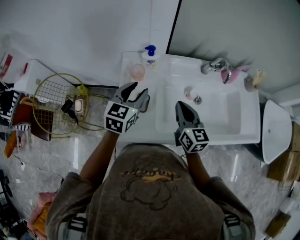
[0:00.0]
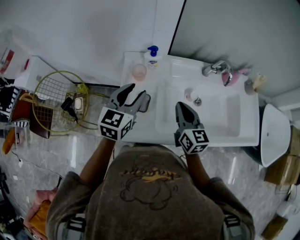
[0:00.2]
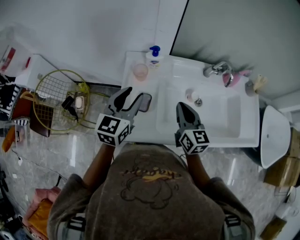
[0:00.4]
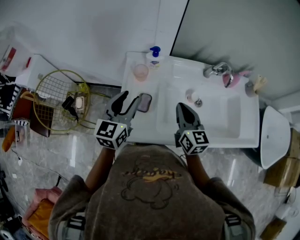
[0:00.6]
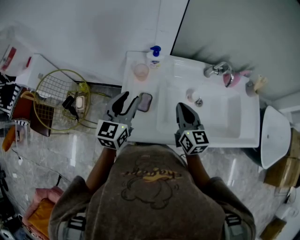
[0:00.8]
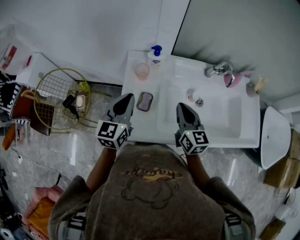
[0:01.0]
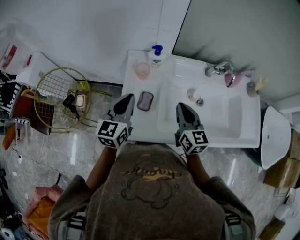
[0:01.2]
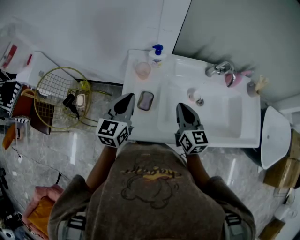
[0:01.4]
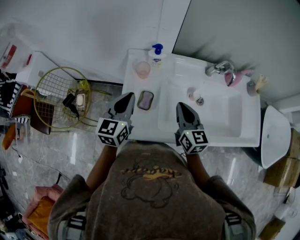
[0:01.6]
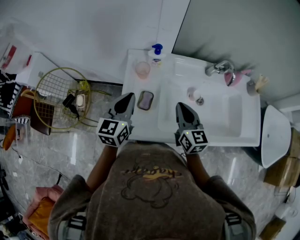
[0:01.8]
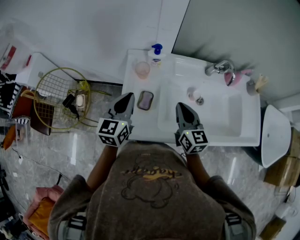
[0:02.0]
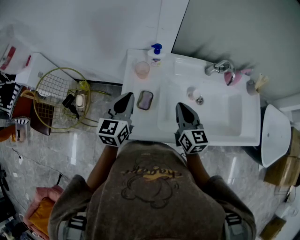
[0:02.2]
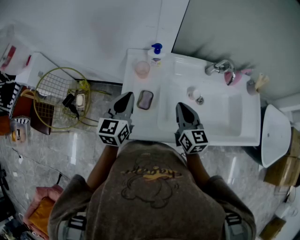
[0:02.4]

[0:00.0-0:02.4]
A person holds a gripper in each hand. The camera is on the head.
0:00.0 to 0:01.2: The left gripper is displaced to the left and backward by approximately 10 cm, and closes up.
0:01.2 to 0:02.4: Both grippers stay put.

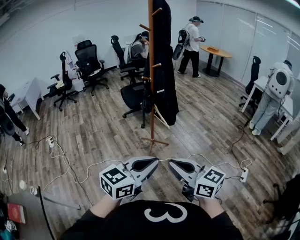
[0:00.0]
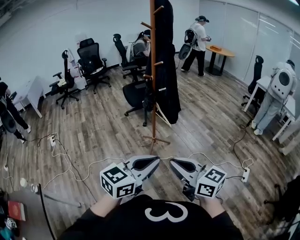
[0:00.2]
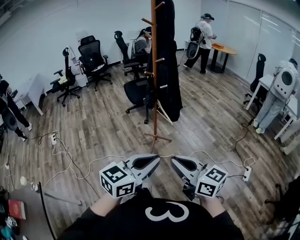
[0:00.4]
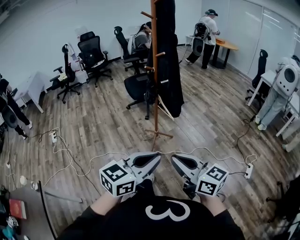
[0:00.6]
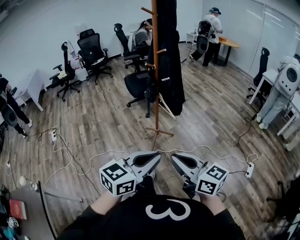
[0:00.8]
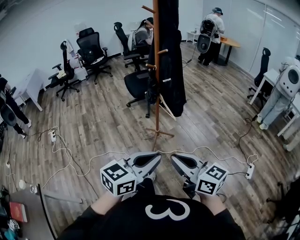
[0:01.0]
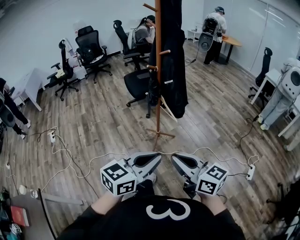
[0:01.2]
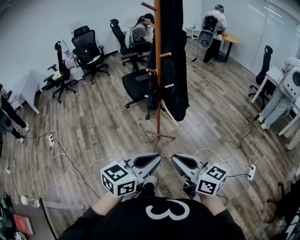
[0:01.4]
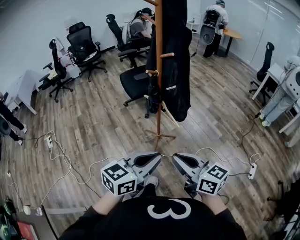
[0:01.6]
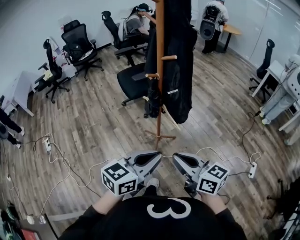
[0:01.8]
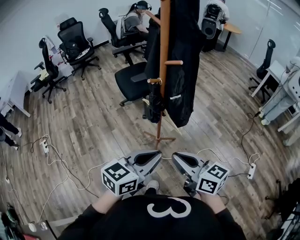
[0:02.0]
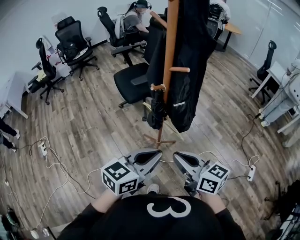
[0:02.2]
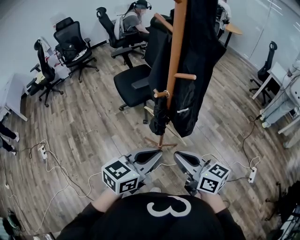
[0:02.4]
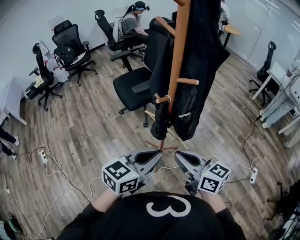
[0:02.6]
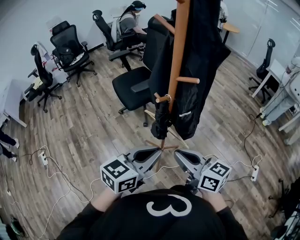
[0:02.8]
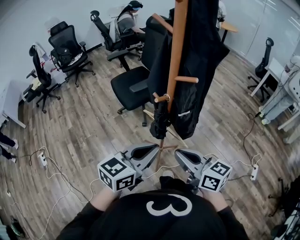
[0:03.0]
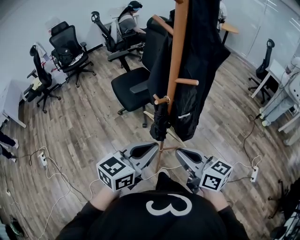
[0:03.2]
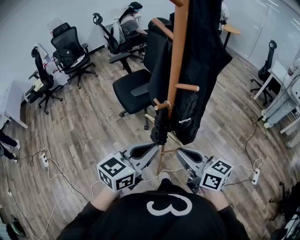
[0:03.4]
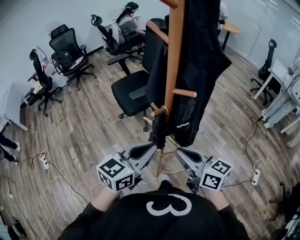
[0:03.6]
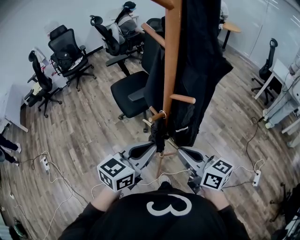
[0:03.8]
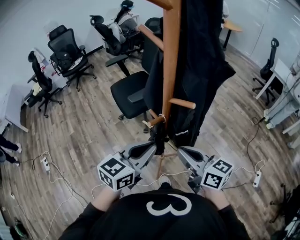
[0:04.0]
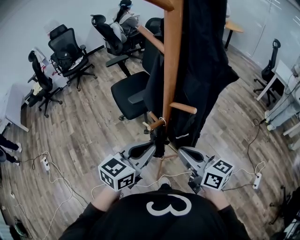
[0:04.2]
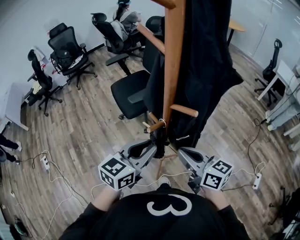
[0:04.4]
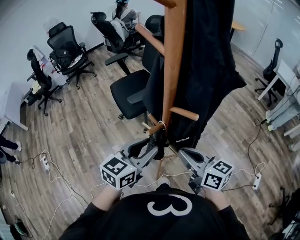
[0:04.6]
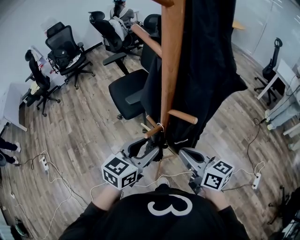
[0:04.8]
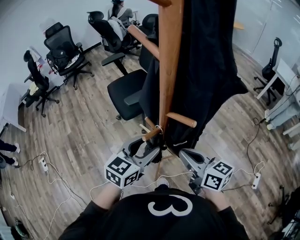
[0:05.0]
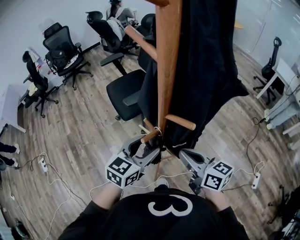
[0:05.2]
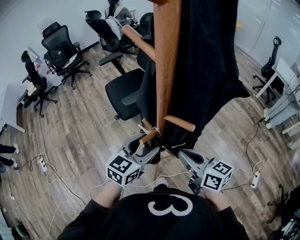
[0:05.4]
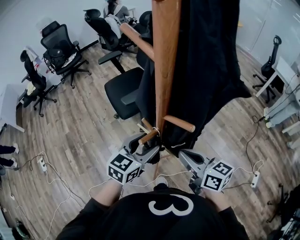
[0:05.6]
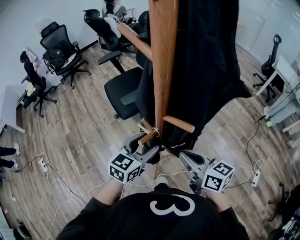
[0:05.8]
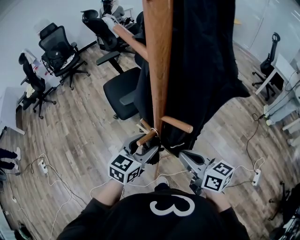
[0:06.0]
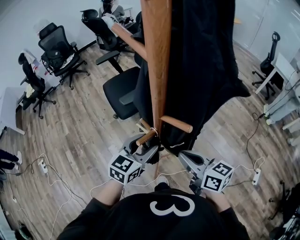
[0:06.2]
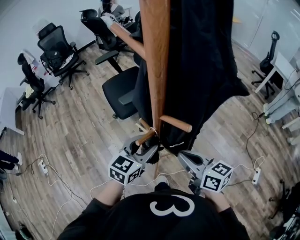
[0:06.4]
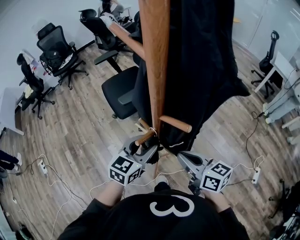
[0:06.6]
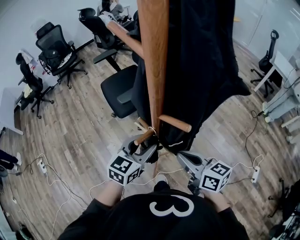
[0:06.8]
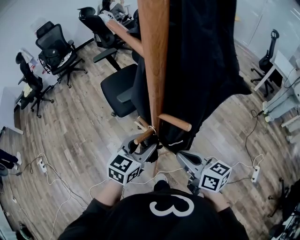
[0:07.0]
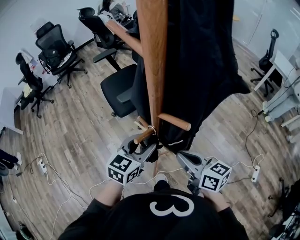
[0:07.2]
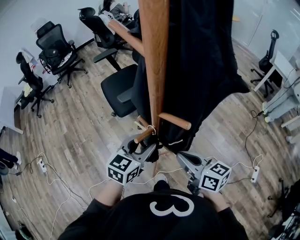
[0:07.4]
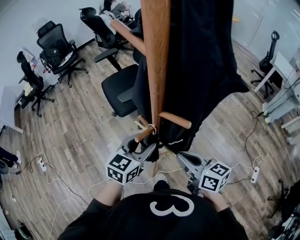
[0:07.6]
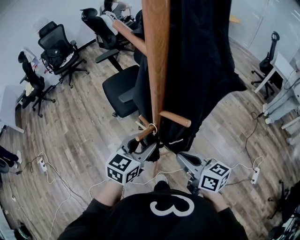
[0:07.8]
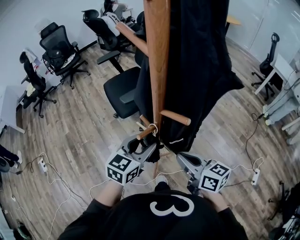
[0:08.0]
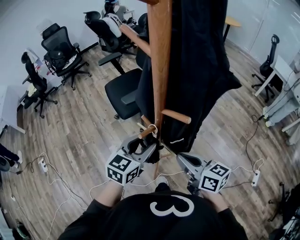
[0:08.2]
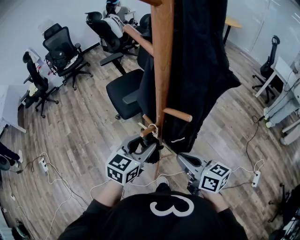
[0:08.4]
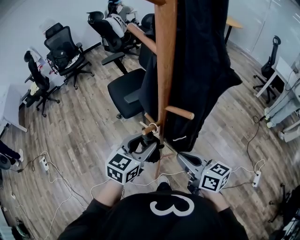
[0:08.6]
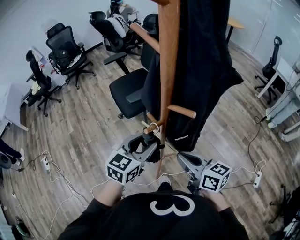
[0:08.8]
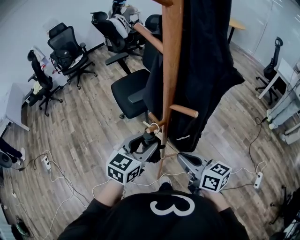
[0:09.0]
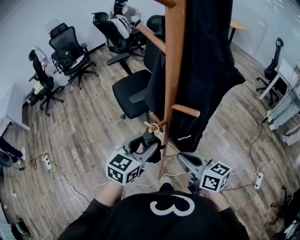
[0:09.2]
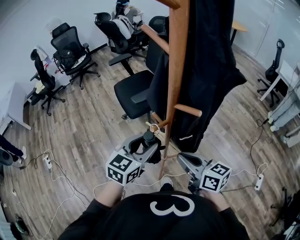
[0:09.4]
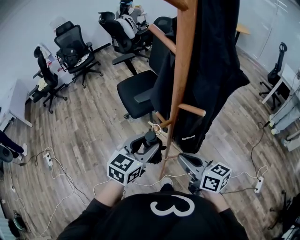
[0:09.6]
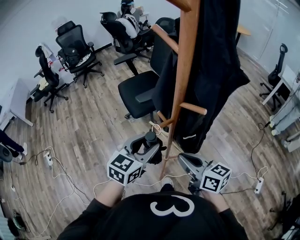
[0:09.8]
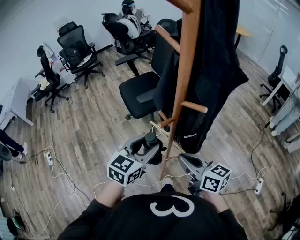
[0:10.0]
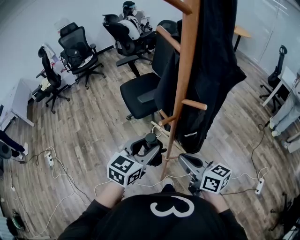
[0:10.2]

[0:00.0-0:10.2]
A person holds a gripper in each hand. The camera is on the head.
0:00.0 to 0:01.4: The grippers both shift forward by some 15 cm.
0:01.4 to 0:03.0: Both grippers move forward, some 30 cm.
0:03.0 to 0:04.4: The grippers both shift forward by some 15 cm.
0:04.4 to 0:05.8: The right gripper shifts by some 5 cm. The left gripper is displaced downward and forward by approximately 10 cm, and opens up.
0:05.8 to 0:07.2: There are only small adjustments of the grippers.
0:07.2 to 0:08.8: The left gripper changes place by approximately 5 cm.
0:08.8 to 0:10.2: The right gripper moves some 5 cm. Meanwhile the left gripper moves about 5 cm.

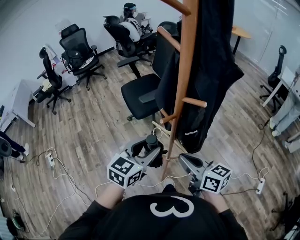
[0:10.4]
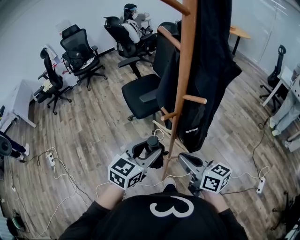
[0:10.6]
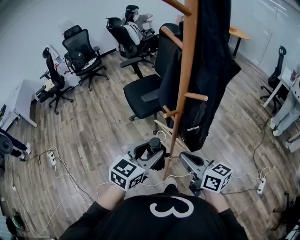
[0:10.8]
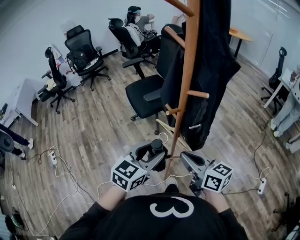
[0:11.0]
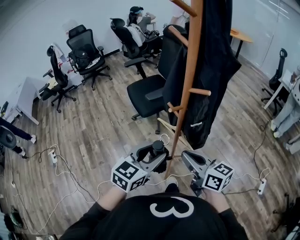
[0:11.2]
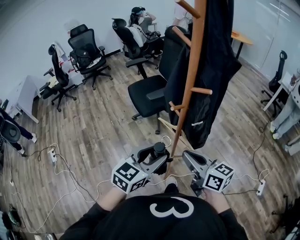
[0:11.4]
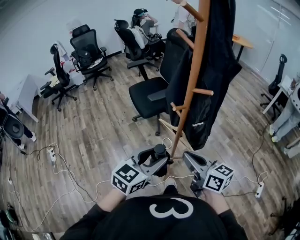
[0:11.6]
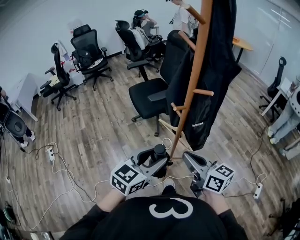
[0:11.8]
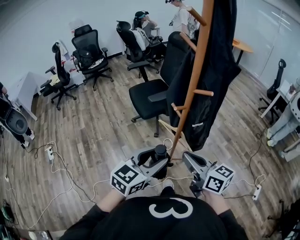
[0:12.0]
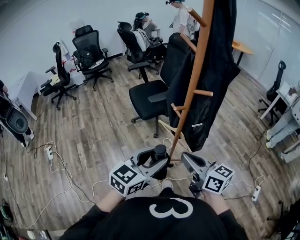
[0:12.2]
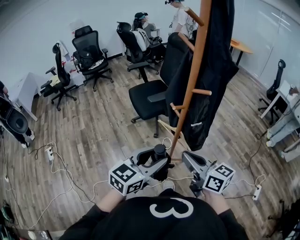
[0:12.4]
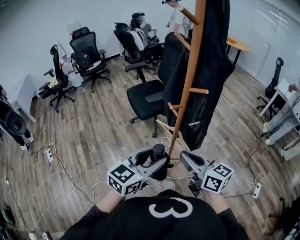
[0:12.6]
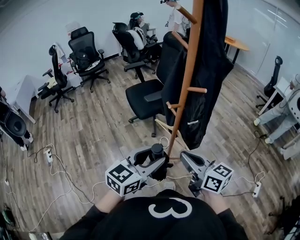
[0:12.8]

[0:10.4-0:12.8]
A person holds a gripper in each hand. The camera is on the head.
0:10.4 to 0:11.6: The right gripper shifts roughly 5 cm backward; the left gripper moves backward, approximately 10 cm.
0:11.6 to 0:12.8: The grippers make only small movements.

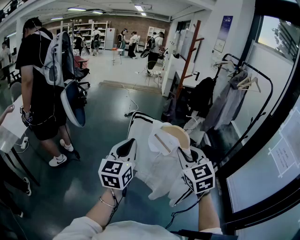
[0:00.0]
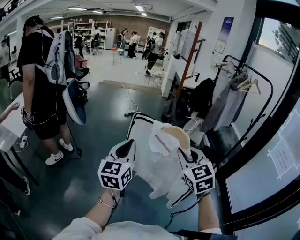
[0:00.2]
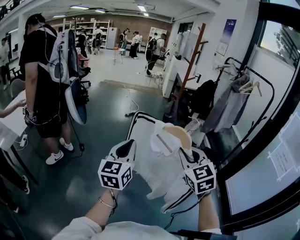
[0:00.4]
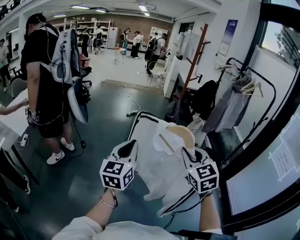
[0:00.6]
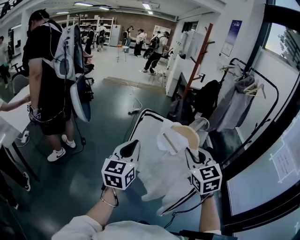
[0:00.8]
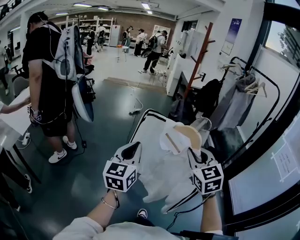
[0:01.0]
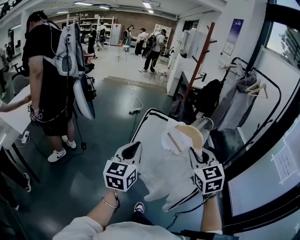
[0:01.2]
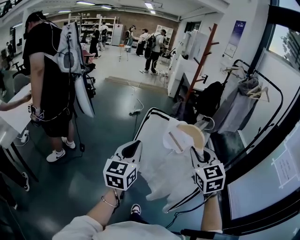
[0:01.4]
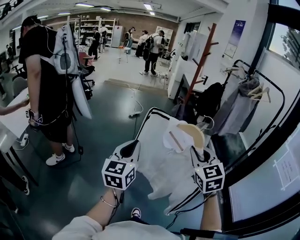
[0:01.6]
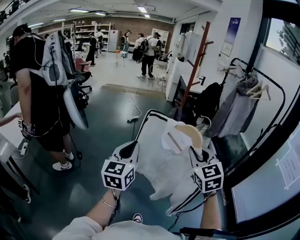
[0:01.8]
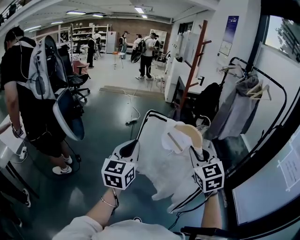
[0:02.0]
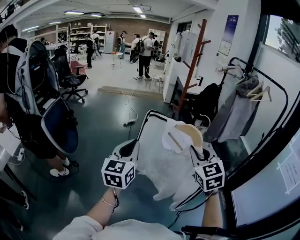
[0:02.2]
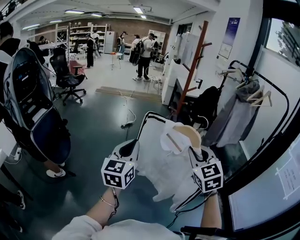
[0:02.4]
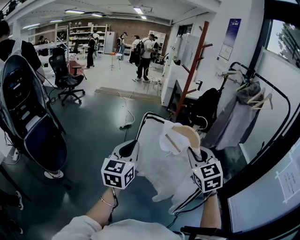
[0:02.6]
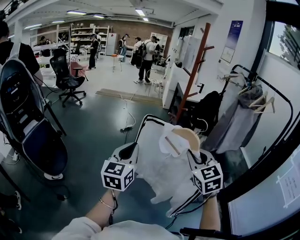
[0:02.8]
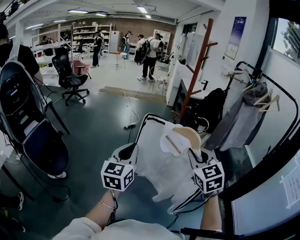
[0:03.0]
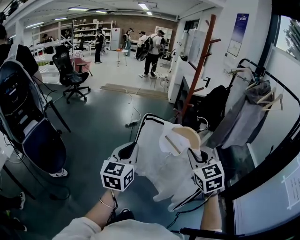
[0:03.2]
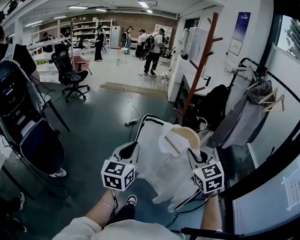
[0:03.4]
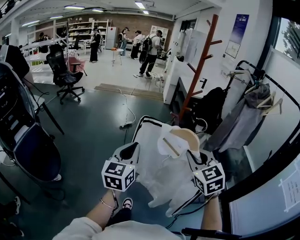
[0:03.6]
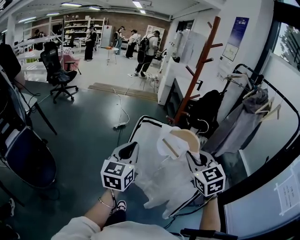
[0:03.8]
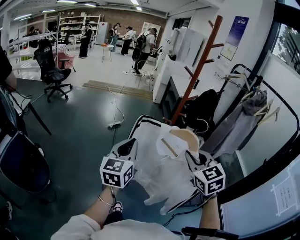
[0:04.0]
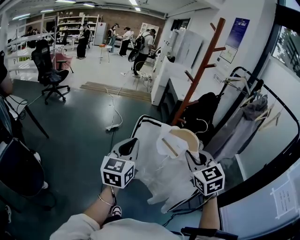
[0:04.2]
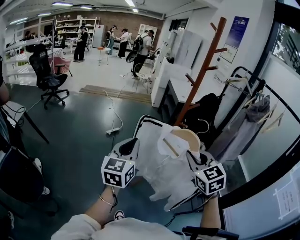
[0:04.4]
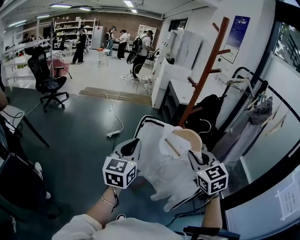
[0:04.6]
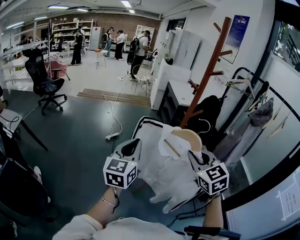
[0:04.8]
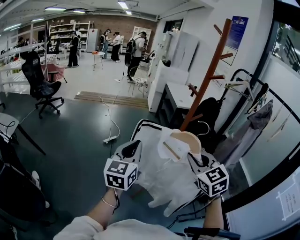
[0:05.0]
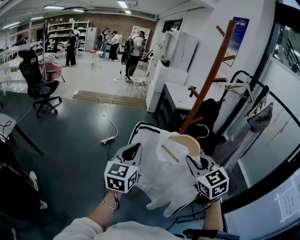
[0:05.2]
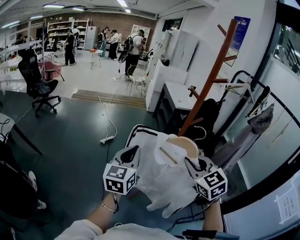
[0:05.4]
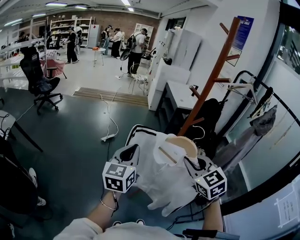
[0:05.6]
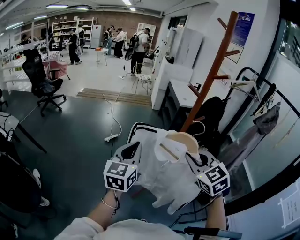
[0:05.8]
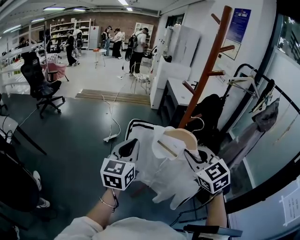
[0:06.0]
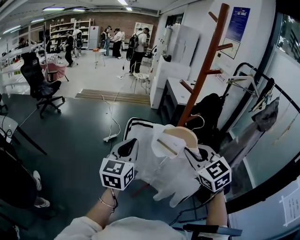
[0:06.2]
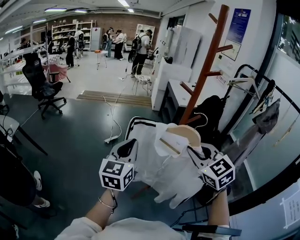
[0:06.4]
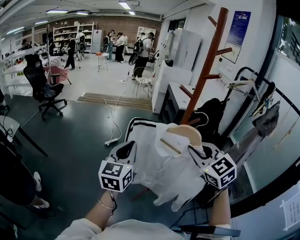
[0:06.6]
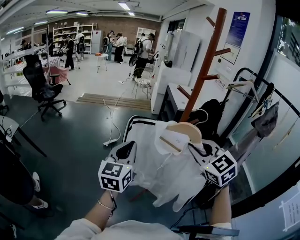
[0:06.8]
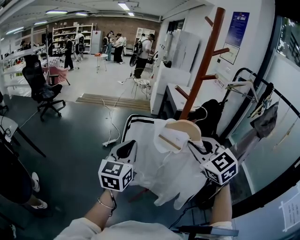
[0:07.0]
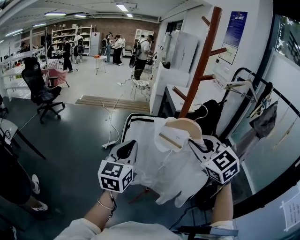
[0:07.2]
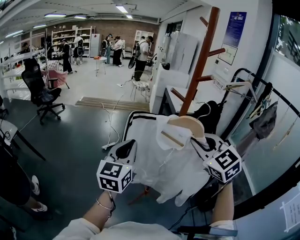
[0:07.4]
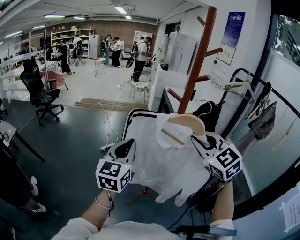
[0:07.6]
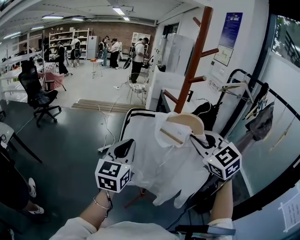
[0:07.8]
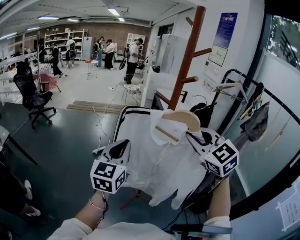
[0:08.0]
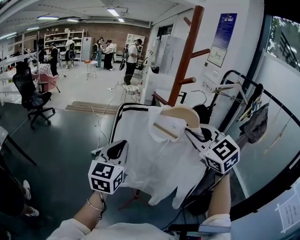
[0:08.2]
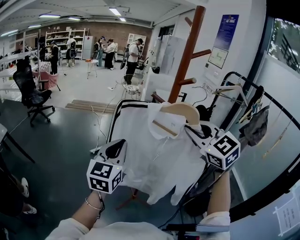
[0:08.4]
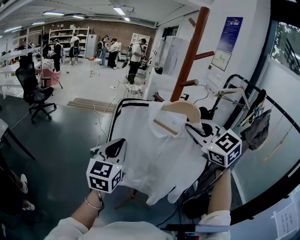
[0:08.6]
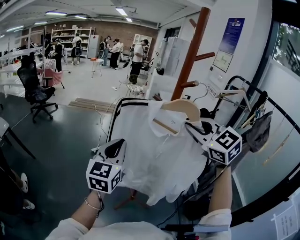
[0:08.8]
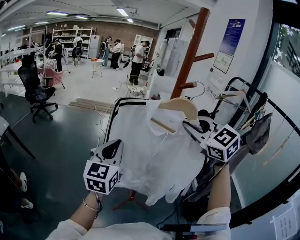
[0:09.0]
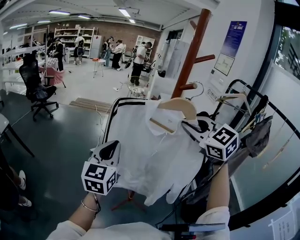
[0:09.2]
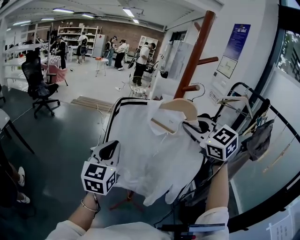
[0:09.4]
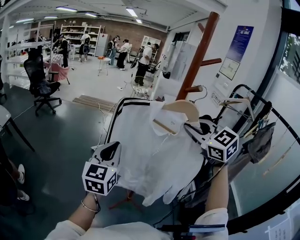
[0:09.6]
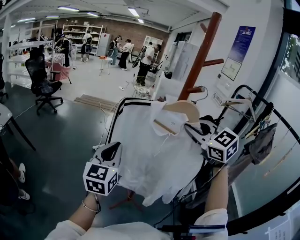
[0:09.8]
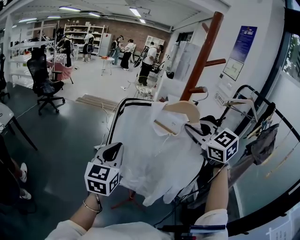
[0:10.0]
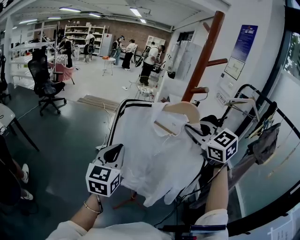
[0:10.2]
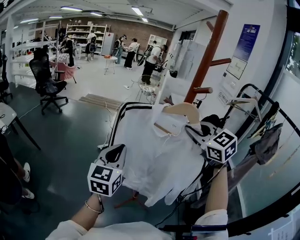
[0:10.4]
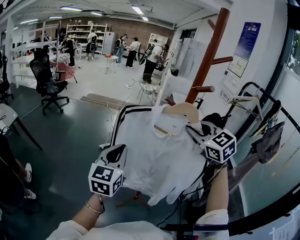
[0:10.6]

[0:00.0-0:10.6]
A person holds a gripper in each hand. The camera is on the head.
0:00.0 to 0:01.6: The two grippers go some 10 cm forward.
0:01.6 to 0:03.0: Both grippers travel together forward, some 20 cm.
0:03.0 to 0:04.6: Both grippers travel together forward, about 25 cm.
0:04.6 to 0:06.0: Both grippers move forward, approximately 10 cm.
0:06.0 to 0:07.6: The right gripper heads upward and to the right, covering approximately 10 cm. The left gripper ends up some 5 cm from where it was.
0:07.6 to 0:09.0: The right gripper is displaced forward and upward by roughly 10 cm.
0:09.0 to 0:10.6: The right gripper moves forward, some 5 cm.
